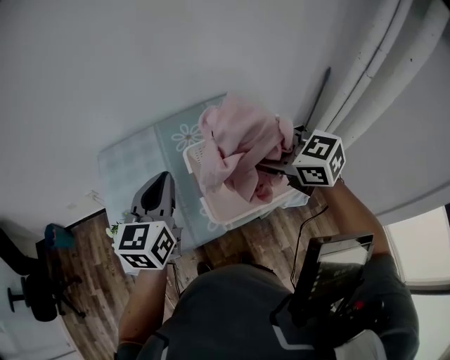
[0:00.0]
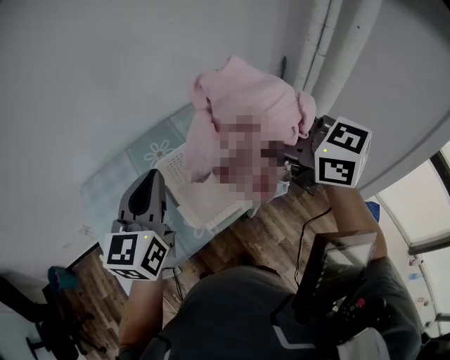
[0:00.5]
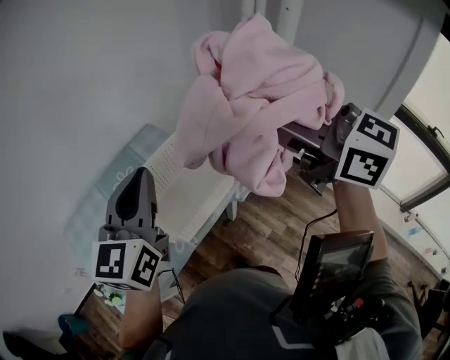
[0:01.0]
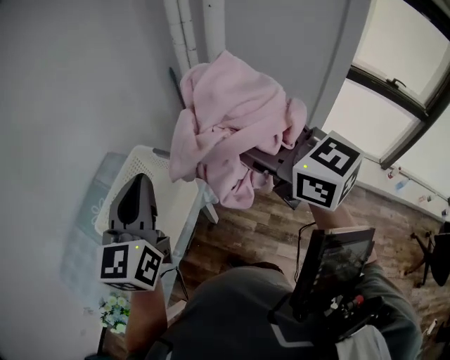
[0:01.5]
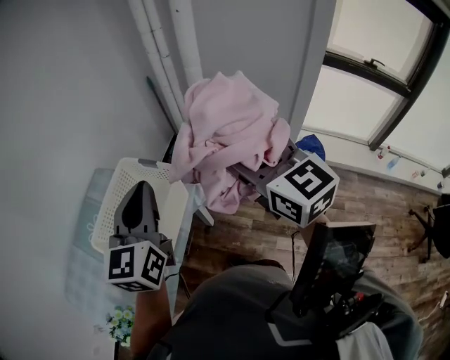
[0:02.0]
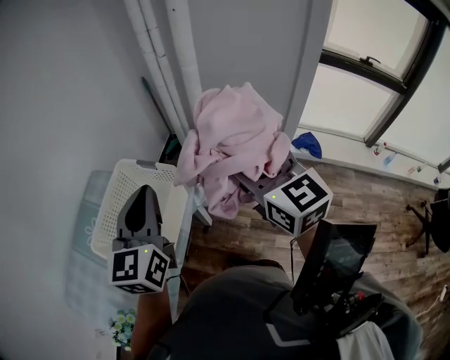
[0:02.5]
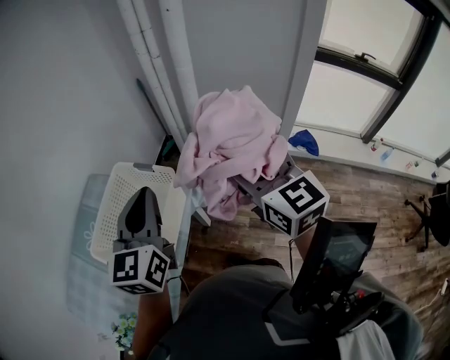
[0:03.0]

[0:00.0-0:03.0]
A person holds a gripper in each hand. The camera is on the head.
0:00.0 to 0:01.5: The left gripper moves approximately 30 cm, and swivels approximately 40 degrees; the right gripper ends up about 30 cm from where it was, and rotates some 60 degrees.
0:01.5 to 0:03.0: The right gripper heads to the right, backward and downward, covering approximately 10 cm, and rotates roughly 20 degrees. Meanwhile the left gripper moves to the right, some 5 cm.

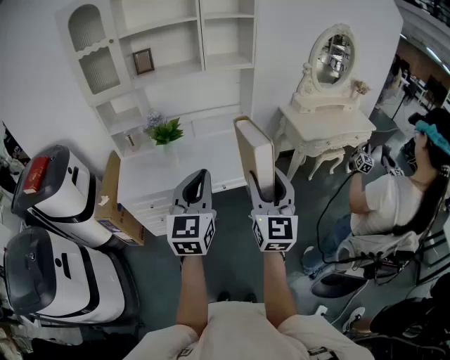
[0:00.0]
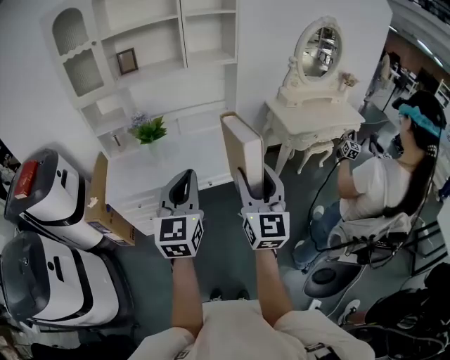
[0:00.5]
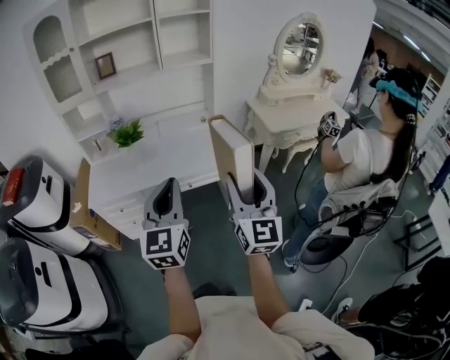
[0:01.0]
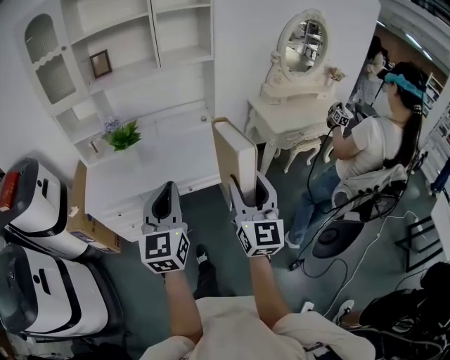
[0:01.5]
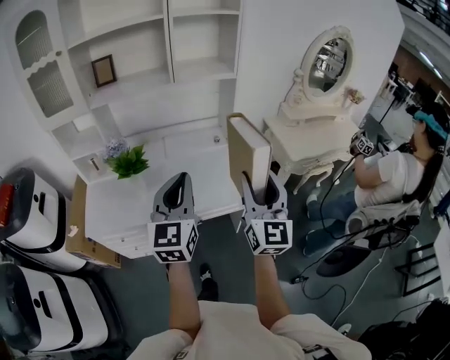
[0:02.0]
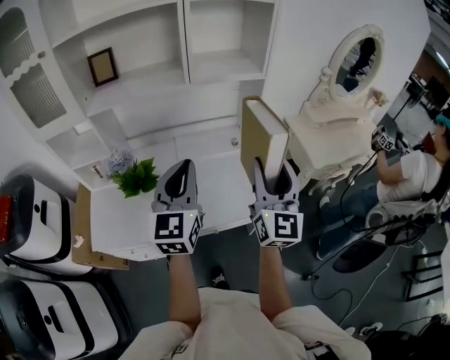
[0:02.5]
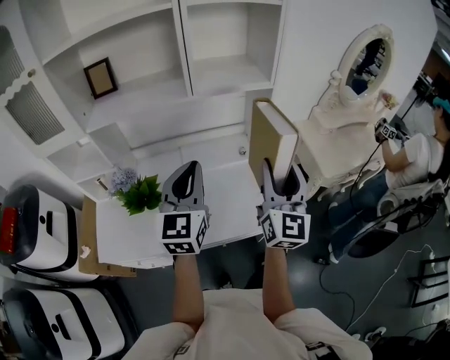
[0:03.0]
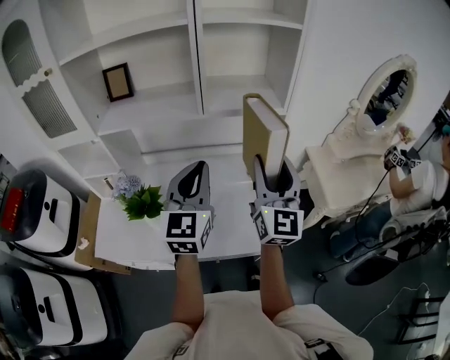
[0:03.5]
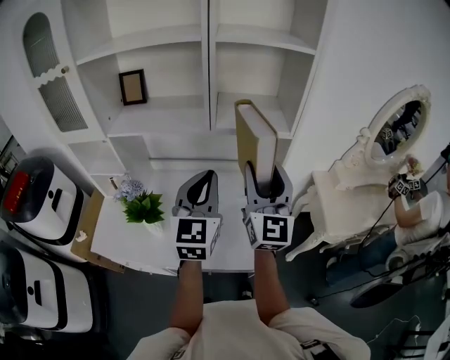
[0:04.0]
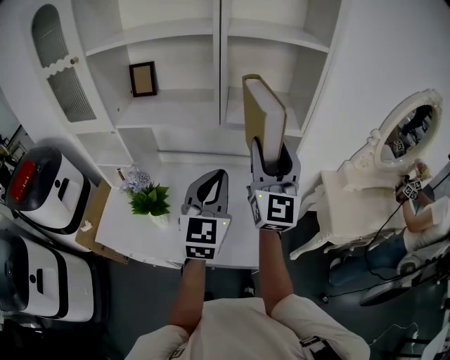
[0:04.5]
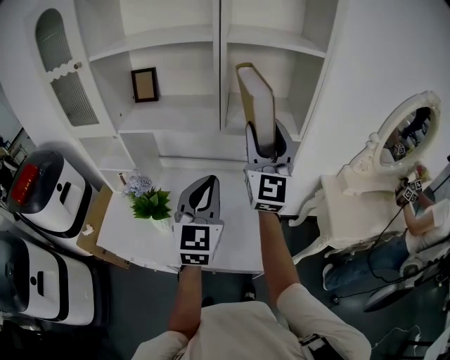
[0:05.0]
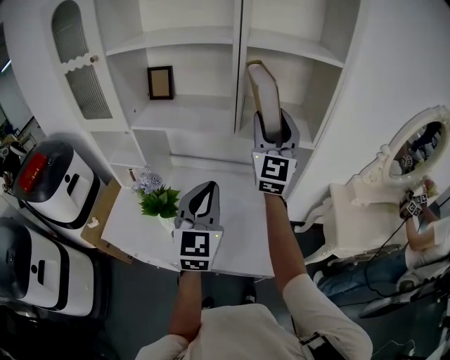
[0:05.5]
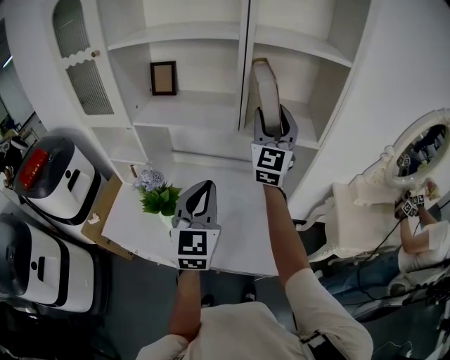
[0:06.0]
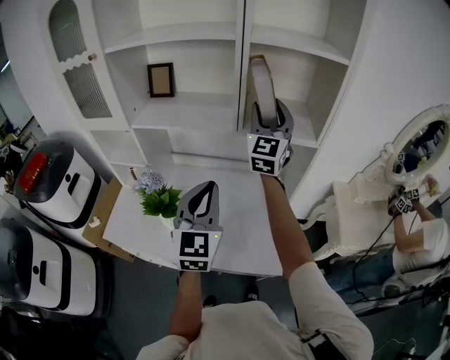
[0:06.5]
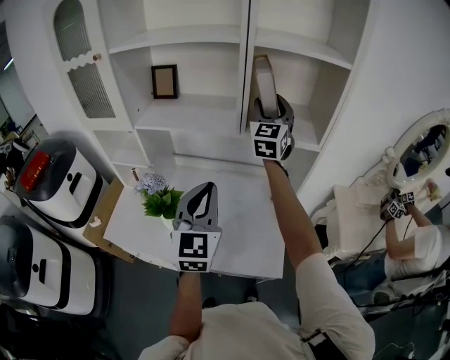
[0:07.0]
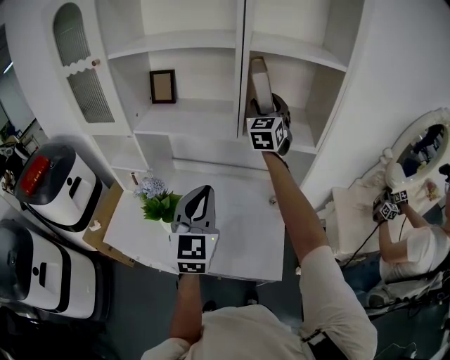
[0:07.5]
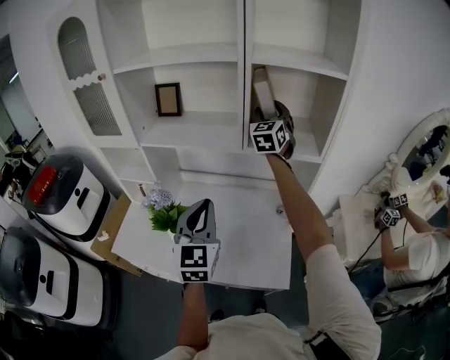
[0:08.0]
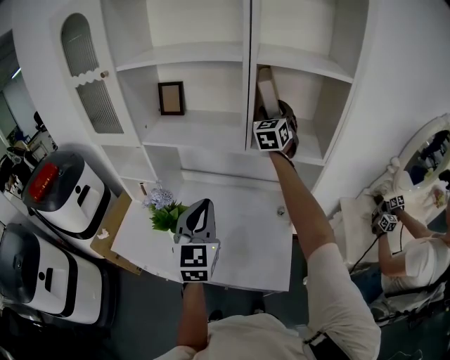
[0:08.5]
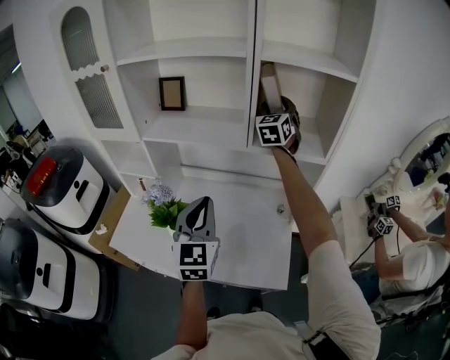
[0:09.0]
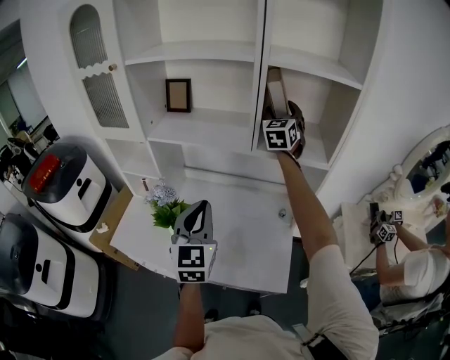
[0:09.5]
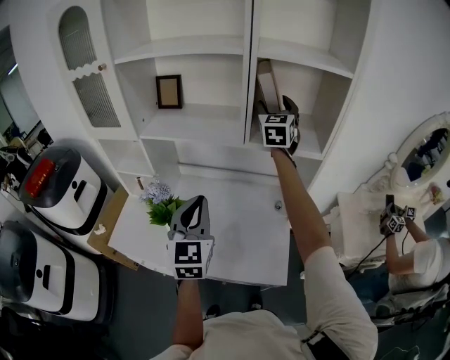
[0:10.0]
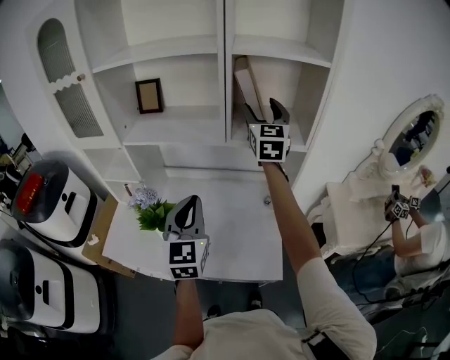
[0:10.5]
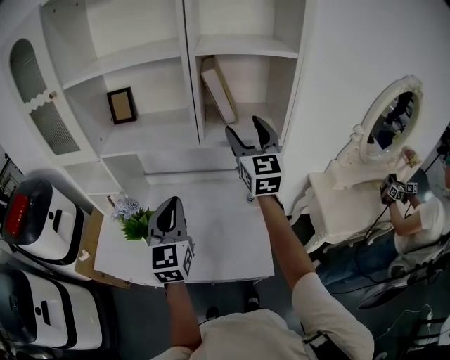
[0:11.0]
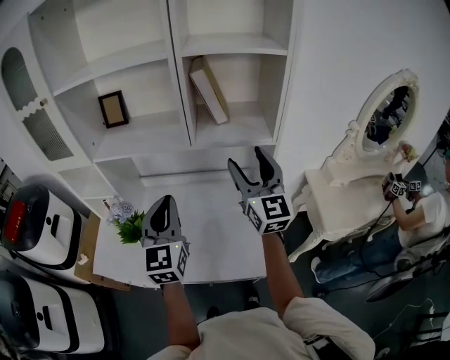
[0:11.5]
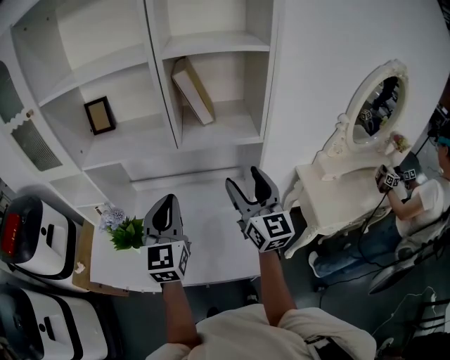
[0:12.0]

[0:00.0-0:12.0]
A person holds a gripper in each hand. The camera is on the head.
0:00.0 to 0:02.0: The grippers both shift forward by roughly 25 cm.
0:02.0 to 0:04.0: The two grippers go approximately 35 cm forward.
0:04.0 to 0:06.0: The left gripper moves to the left, approximately 5 cm. The right gripper shifts roughly 15 cm forward.
0:06.0 to 0:08.0: The right gripper shifts about 15 cm forward, and changes its angle by approximately 20 degrees.
0:08.0 to 0:10.0: There are only small adjustments of the grippers.
0:10.0 to 0:12.0: The left gripper is displaced to the right by roughly 10 cm, while the right gripper goes some 25 cm backward, and changes its angle by about 30 degrees.

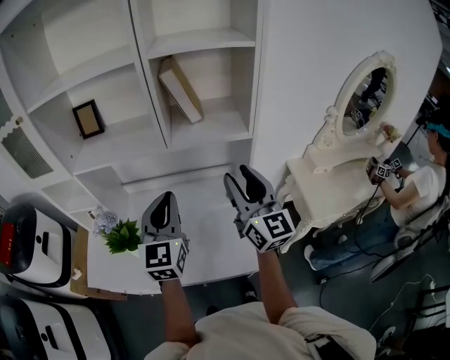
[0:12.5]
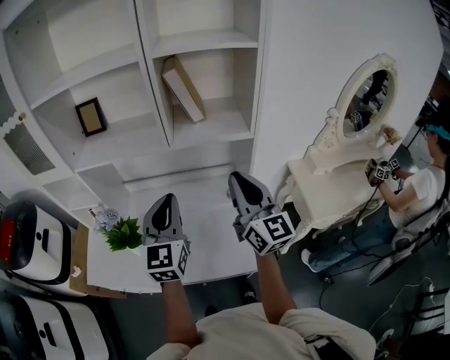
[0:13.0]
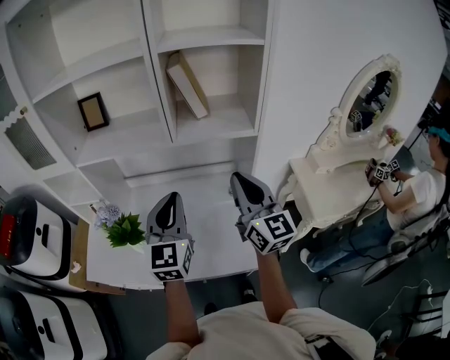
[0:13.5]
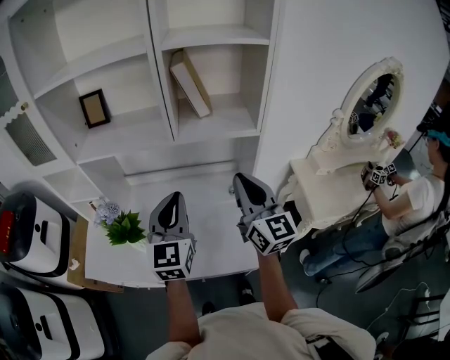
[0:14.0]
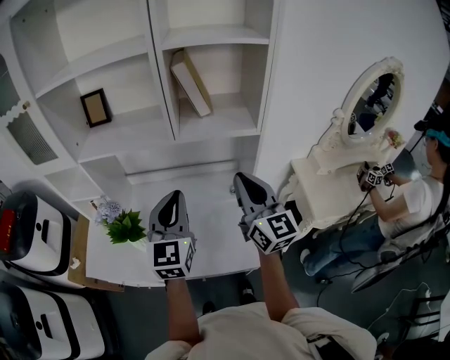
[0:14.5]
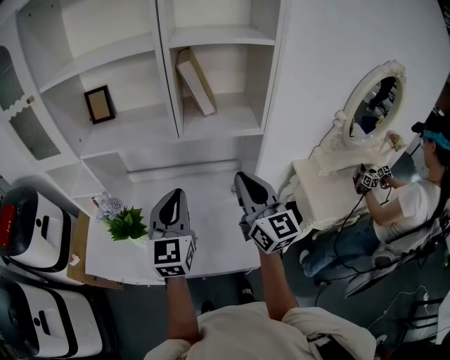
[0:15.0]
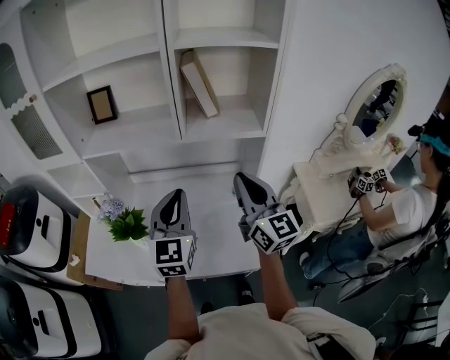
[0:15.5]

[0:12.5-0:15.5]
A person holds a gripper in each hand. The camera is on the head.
0:12.5 to 0:14.0: The right gripper closes its fingers.
0:14.0 to 0:15.5: The grippers make only small movements.

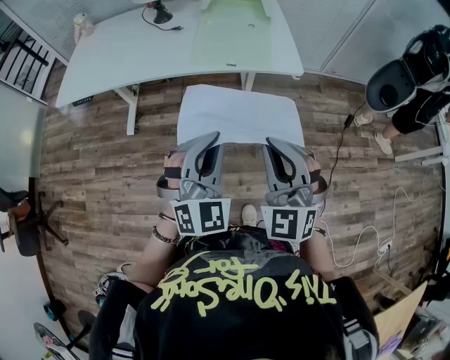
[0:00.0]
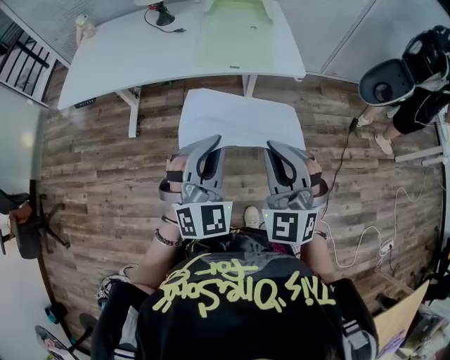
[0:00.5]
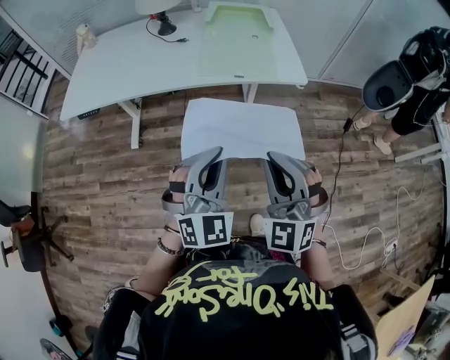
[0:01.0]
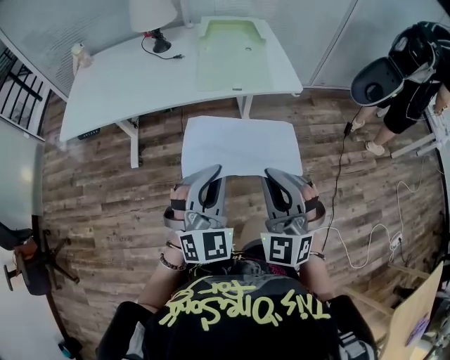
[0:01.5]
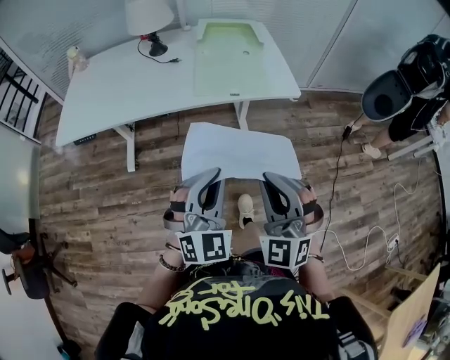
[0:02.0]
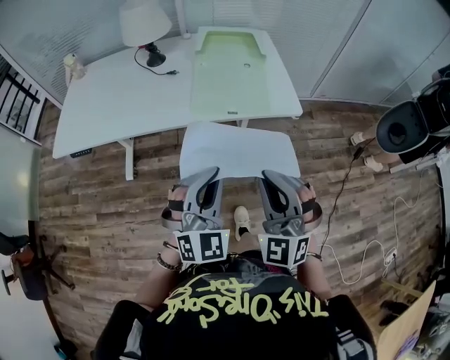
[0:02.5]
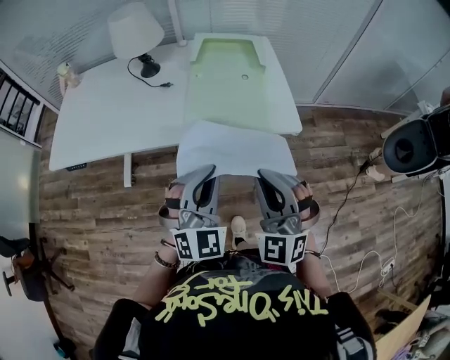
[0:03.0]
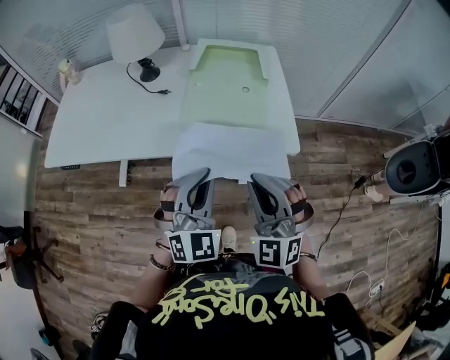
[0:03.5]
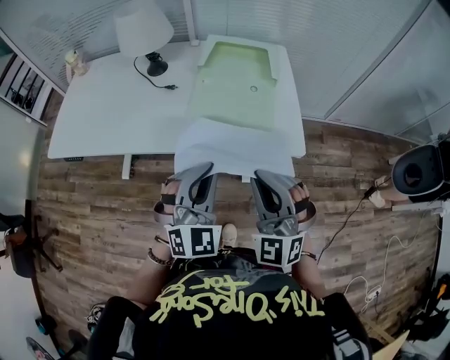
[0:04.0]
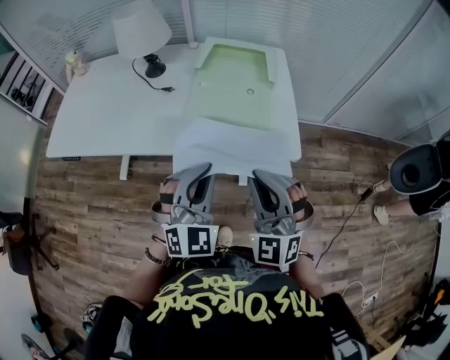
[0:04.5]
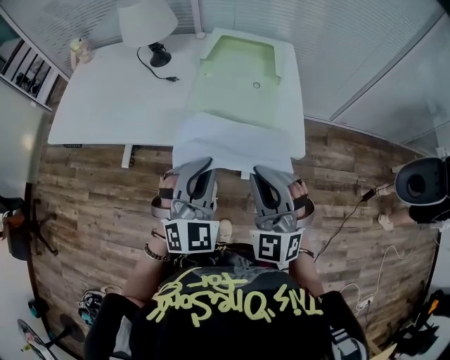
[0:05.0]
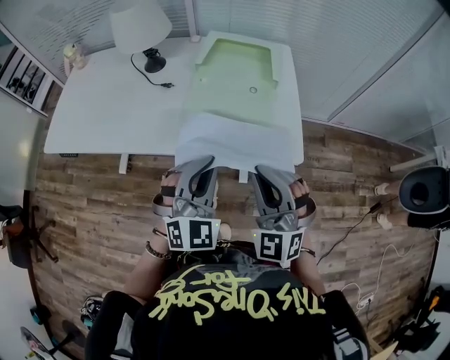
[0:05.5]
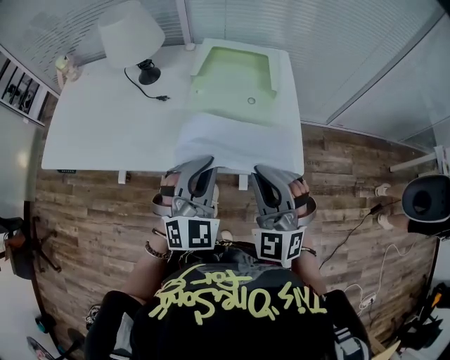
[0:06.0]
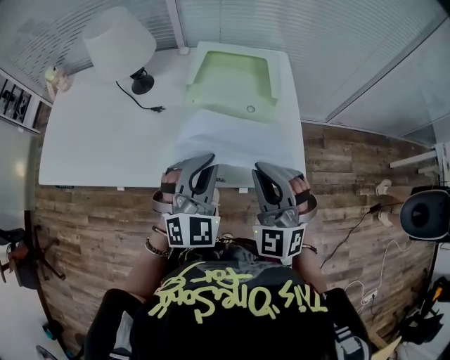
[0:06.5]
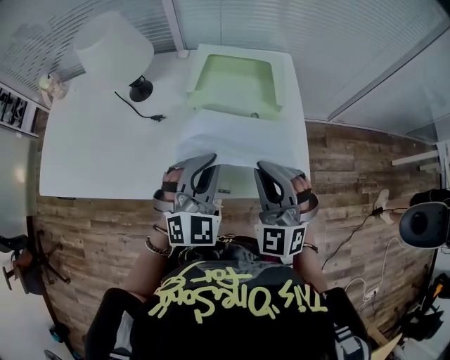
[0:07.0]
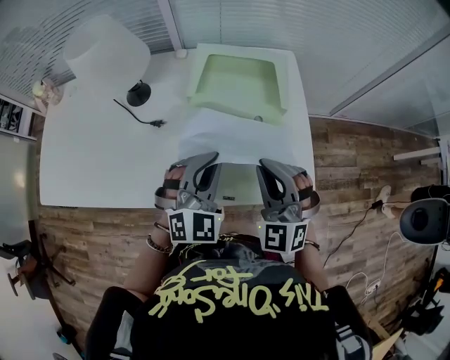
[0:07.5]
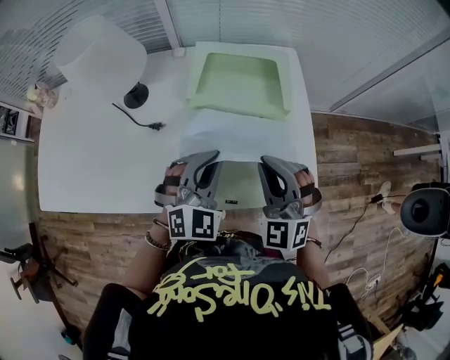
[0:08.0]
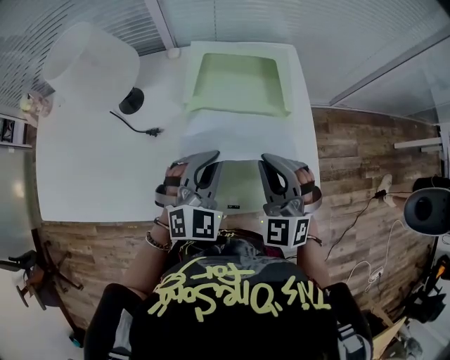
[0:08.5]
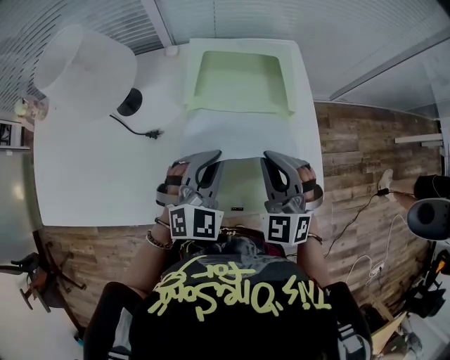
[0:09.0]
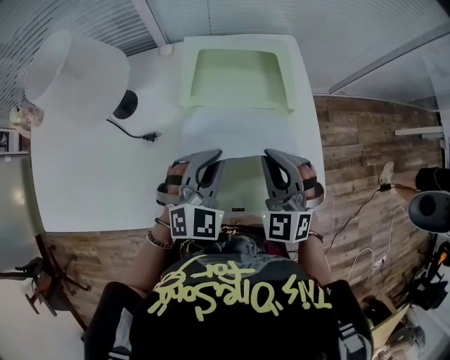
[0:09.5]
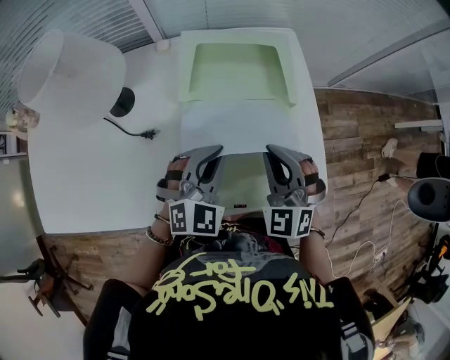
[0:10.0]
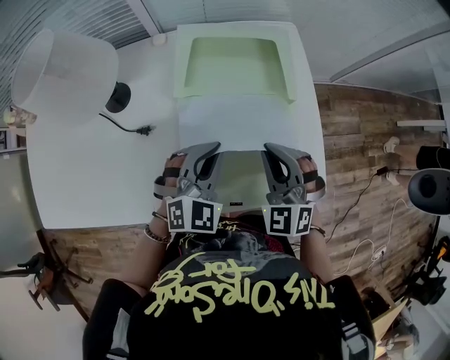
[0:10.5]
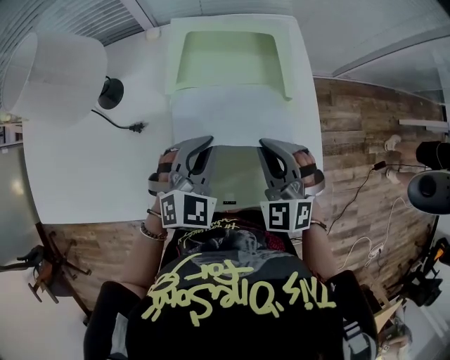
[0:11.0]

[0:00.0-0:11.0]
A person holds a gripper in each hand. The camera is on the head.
0:00.0 to 0:02.0: Both grippers travel together to the left, roughly 5 cm.
0:02.0 to 0:03.5: Both grippers move forward, some 20 cm.
0:03.5 to 0:05.5: The left gripper ends up about 5 cm from where it was. Meanwhile the right gripper moves some 5 cm.
0:05.5 to 0:07.5: Both grippers travel together forward, roughly 15 cm.
0:07.5 to 0:09.0: The right gripper moves forward, about 5 cm. Meanwhile the left gripper shifts by some 5 cm.
0:09.0 to 0:11.0: The grippers make only small movements.
